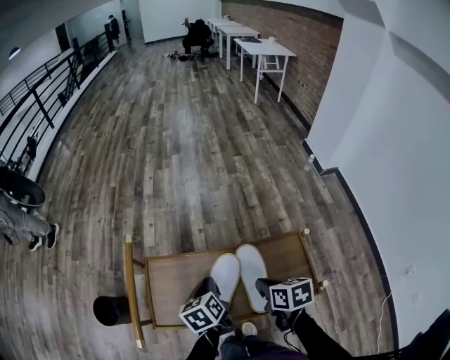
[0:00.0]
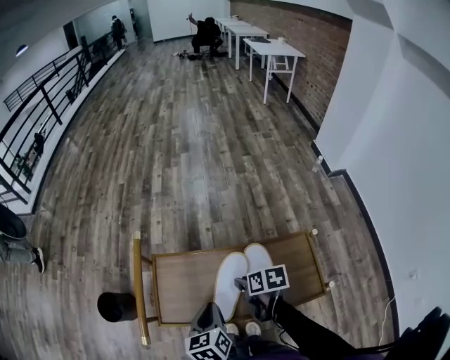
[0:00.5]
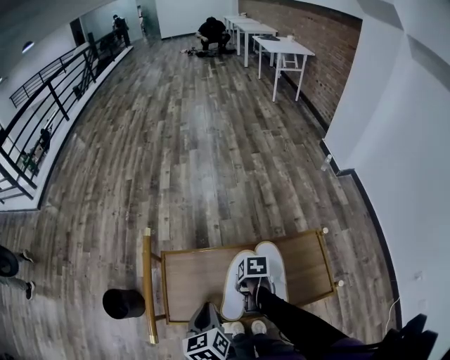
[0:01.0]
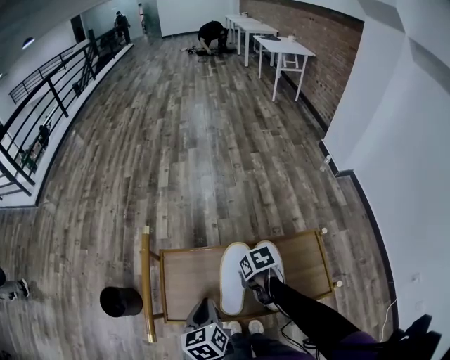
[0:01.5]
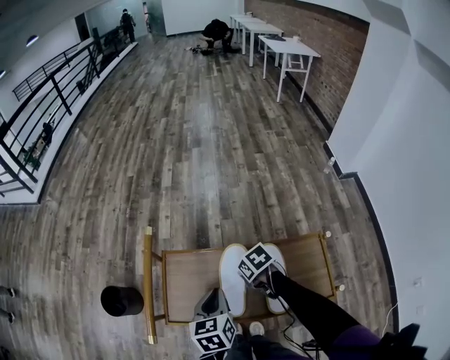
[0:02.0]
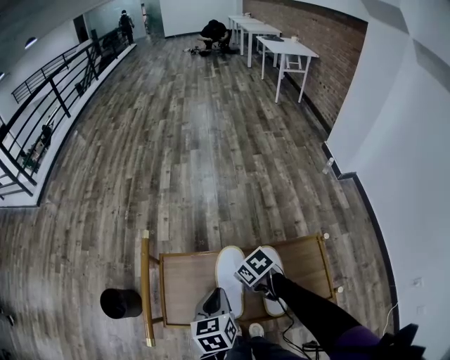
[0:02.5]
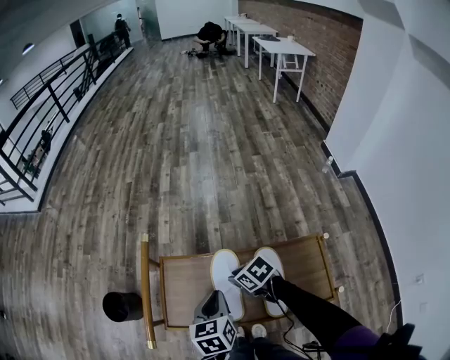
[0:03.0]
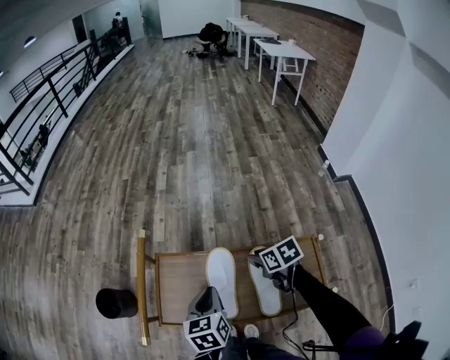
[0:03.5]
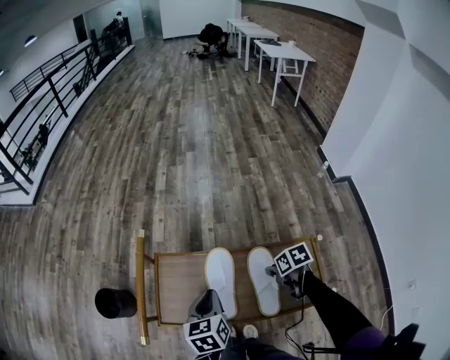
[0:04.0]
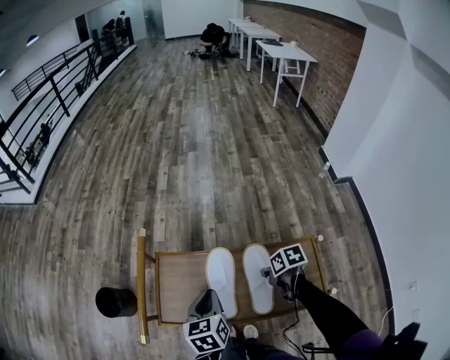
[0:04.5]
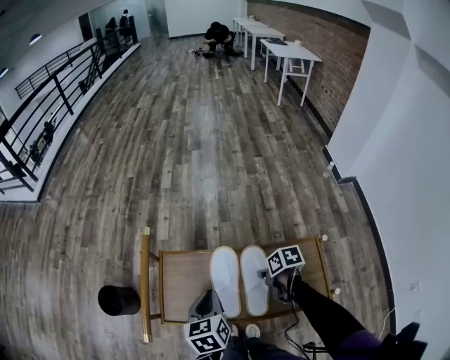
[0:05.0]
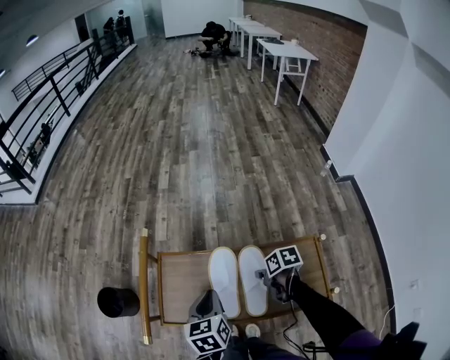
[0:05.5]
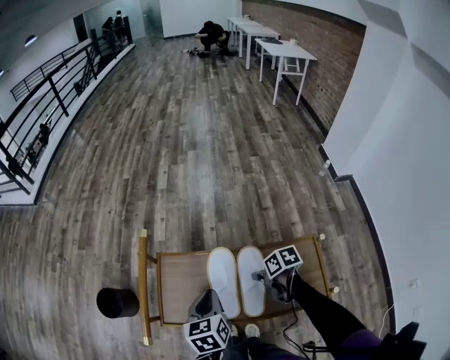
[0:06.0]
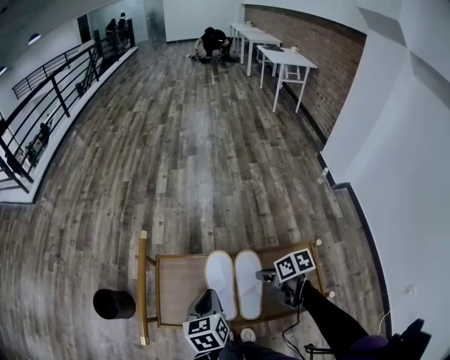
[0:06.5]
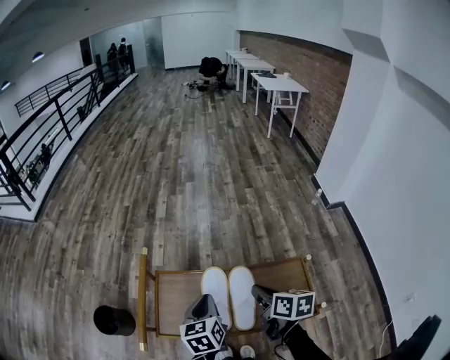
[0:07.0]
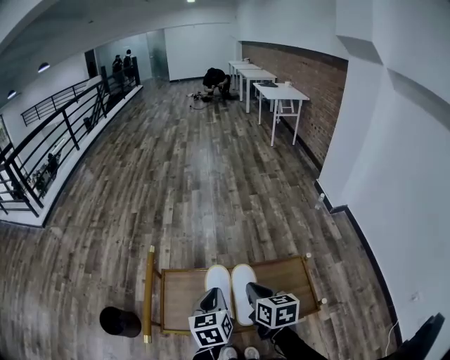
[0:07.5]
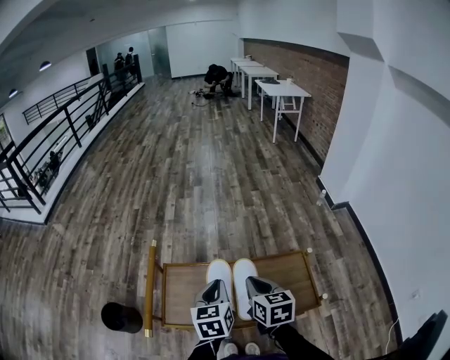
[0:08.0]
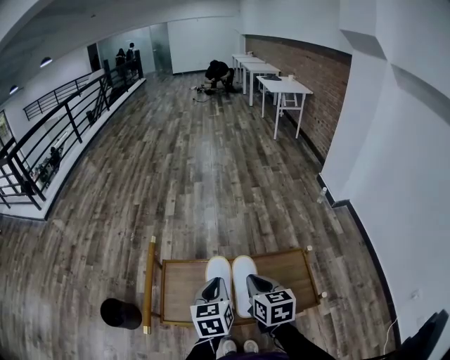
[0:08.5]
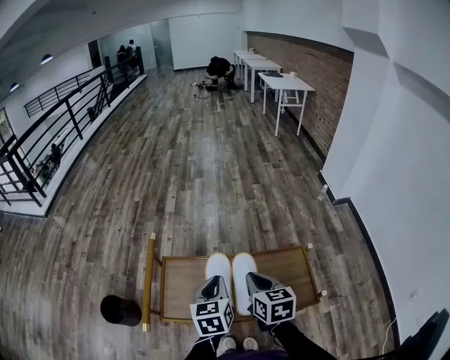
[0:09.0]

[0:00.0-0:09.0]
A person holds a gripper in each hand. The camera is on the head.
0:00.0 to 0:02.0: The right gripper changes place by roughly 15 cm, changes its angle by roughly 40 degrees, and opens, then closes once more.
0:02.0 to 0:04.5: The right gripper travels to the right and backward by about 10 cm, and turns by about 30 degrees.
0:04.5 to 0:07.0: The right gripper travels upward by roughly 15 cm, and rotates approximately 40 degrees.
0:07.0 to 0:09.0: The right gripper swivels roughly 20 degrees.

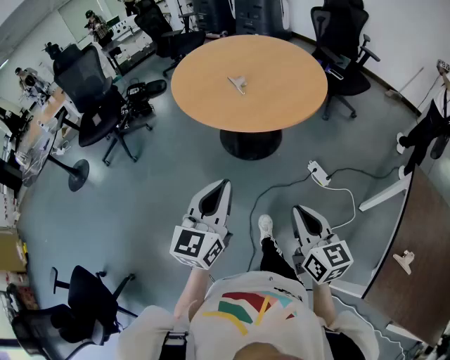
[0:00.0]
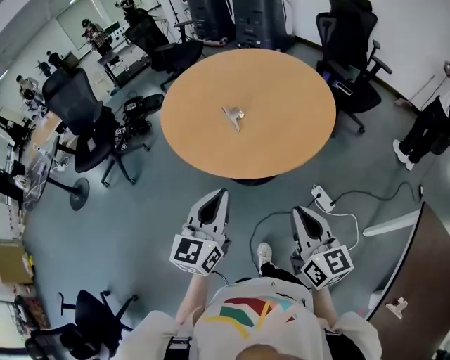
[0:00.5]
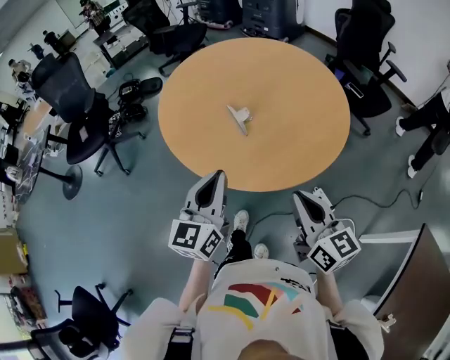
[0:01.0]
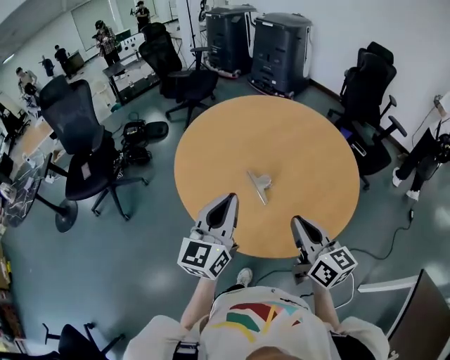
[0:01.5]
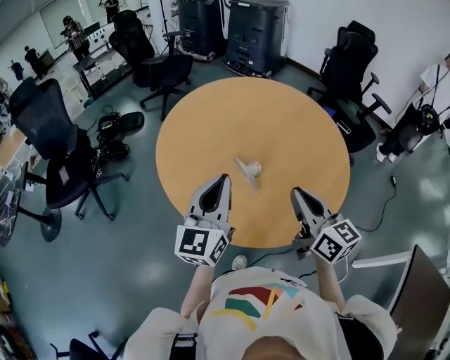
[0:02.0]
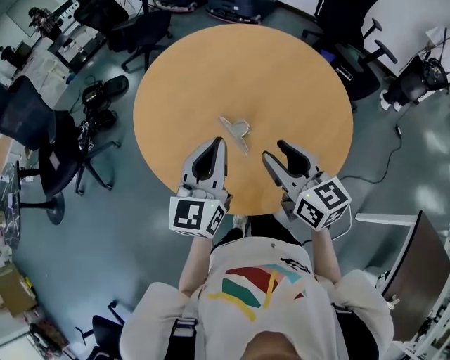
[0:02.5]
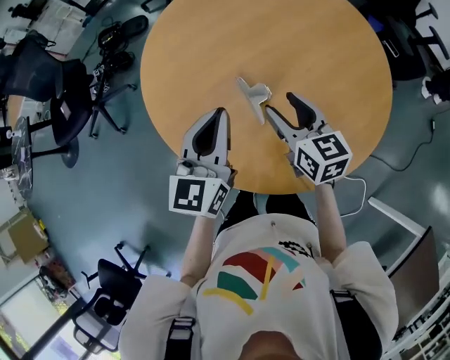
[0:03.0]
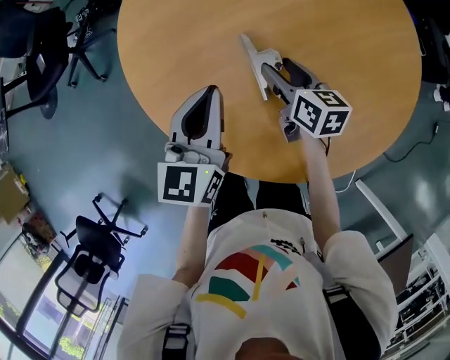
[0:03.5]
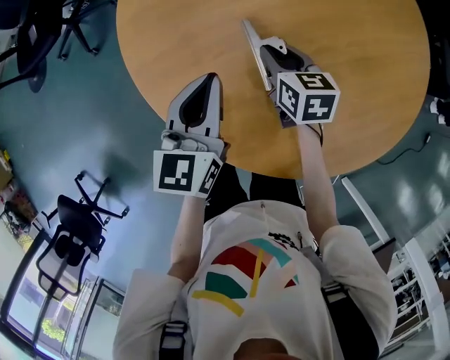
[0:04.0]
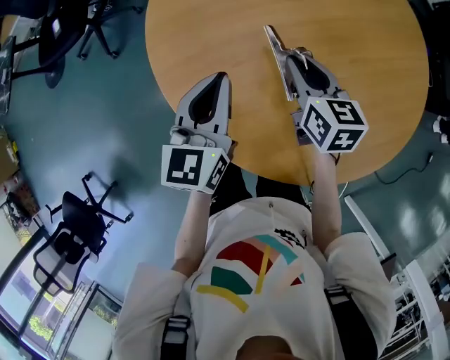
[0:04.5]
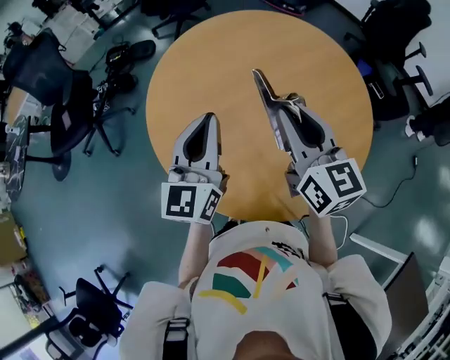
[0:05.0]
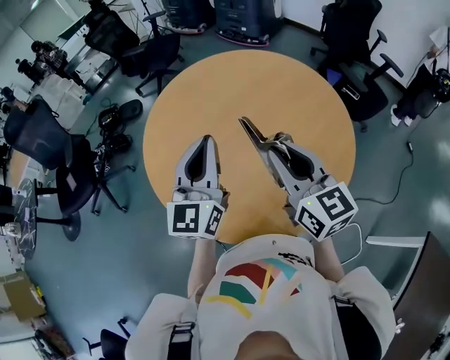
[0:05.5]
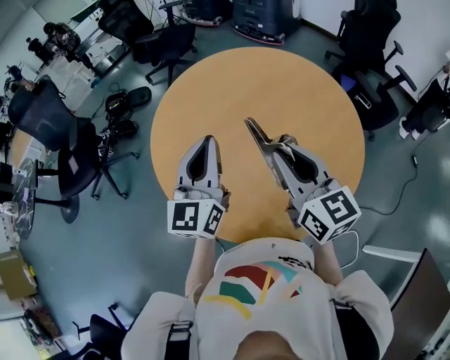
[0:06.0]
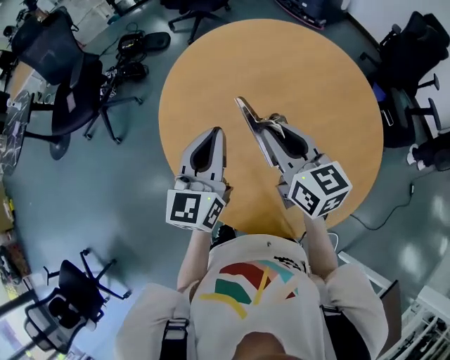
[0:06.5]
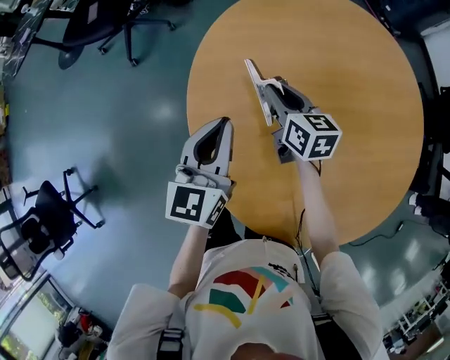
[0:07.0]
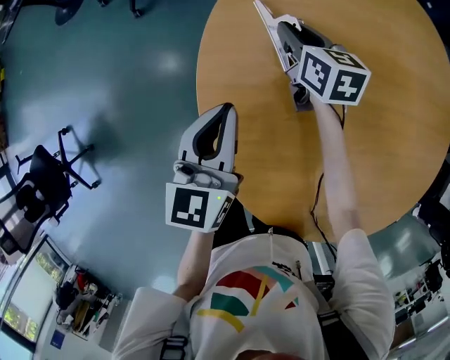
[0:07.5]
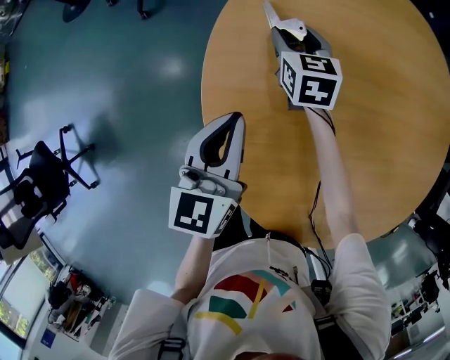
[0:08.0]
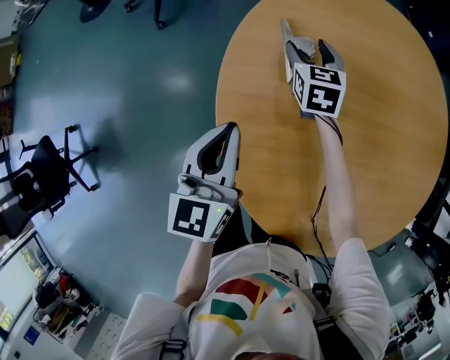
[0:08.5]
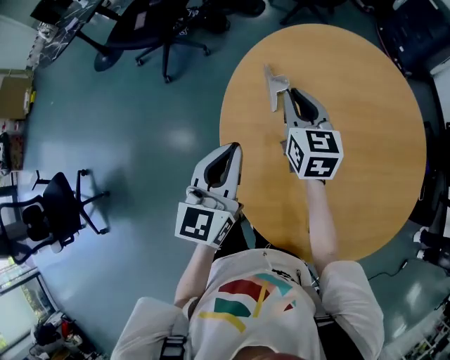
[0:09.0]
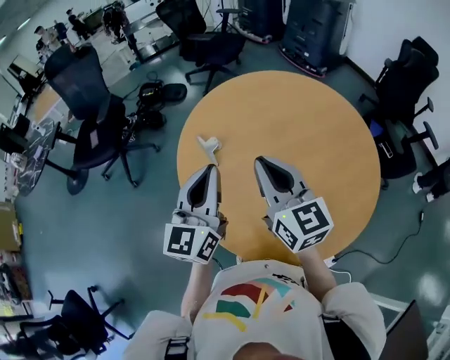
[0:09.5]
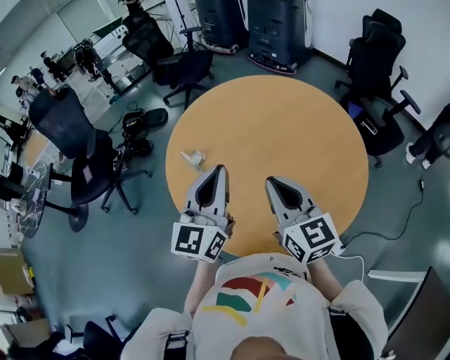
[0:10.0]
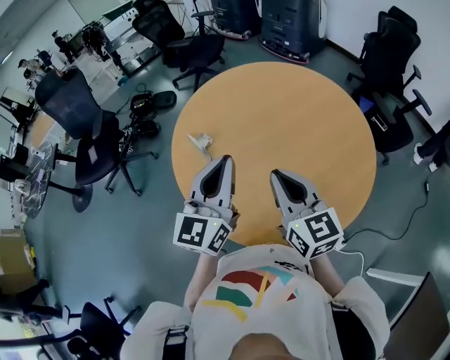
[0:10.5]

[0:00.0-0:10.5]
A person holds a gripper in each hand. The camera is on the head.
0:00.0 to 0:02.0: Both grippers are carried forward, about 60 cm.
0:02.0 to 0:04.0: The left gripper heads downward and forward, covering about 25 cm, and turns by some 30 degrees, while the right gripper is displaced downward and forward by approximately 40 cm, angles its fingers downward, by approximately 40 degrees, and opens up.
0:04.0 to 0:06.5: The left gripper goes some 20 cm upward. Meanwhile the right gripper goes about 30 cm upward, and turns by some 30 degrees.
0:06.5 to 0:08.5: The right gripper travels forward, downward and to the left by about 40 cm, swivels some 30 degrees, and opens up. The left gripper goes approximately 25 cm to the left and downward, and turns by about 30 degrees.
0:08.5 to 0:10.5: The right gripper moves approximately 50 cm, rotates approximately 30 degrees, and closes its fingers, while the left gripper is displaced upward by roughly 25 cm, and turns by about 50 degrees.

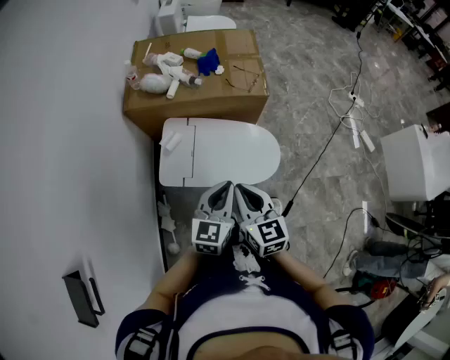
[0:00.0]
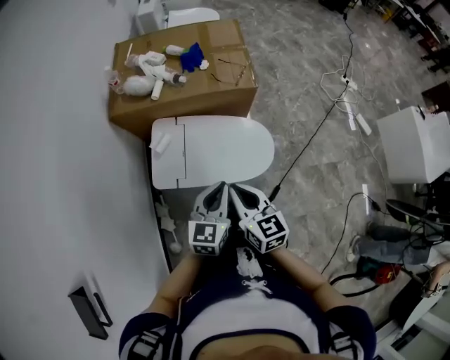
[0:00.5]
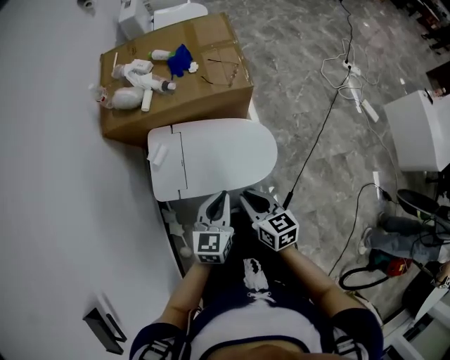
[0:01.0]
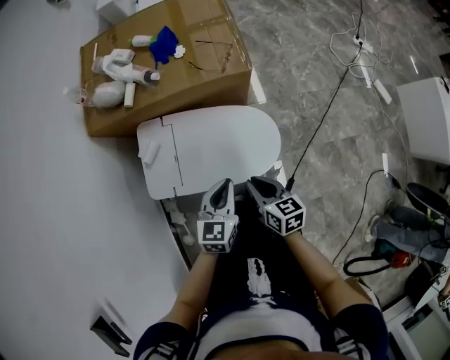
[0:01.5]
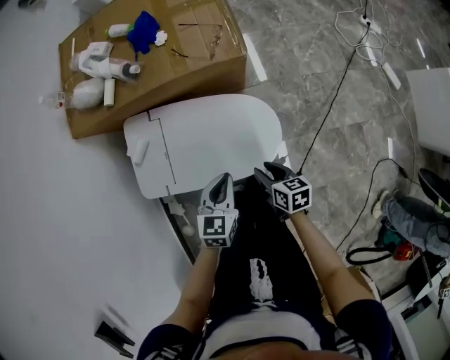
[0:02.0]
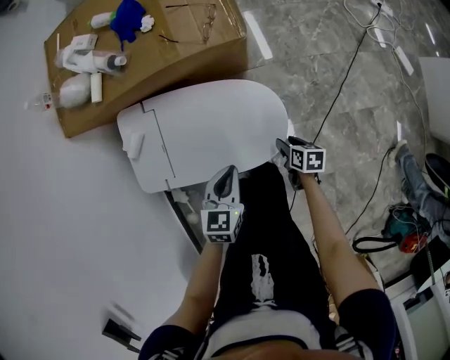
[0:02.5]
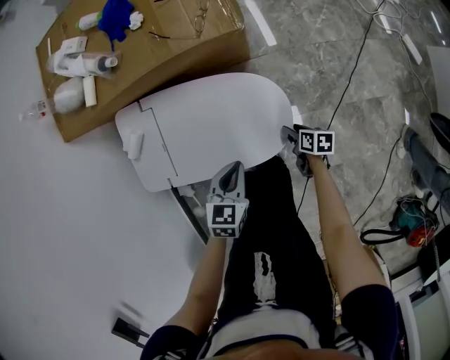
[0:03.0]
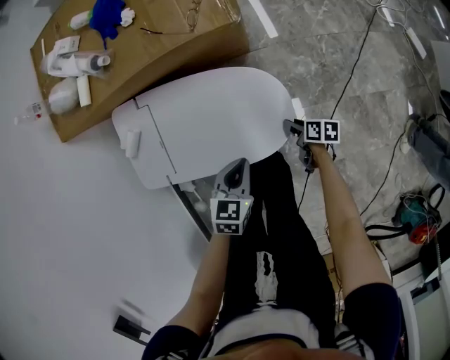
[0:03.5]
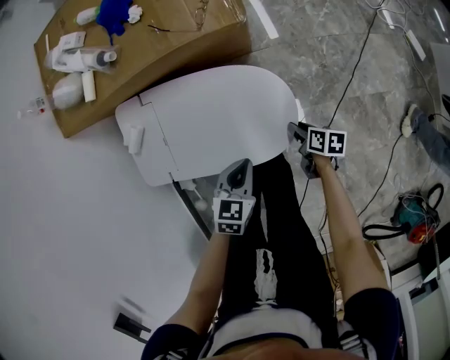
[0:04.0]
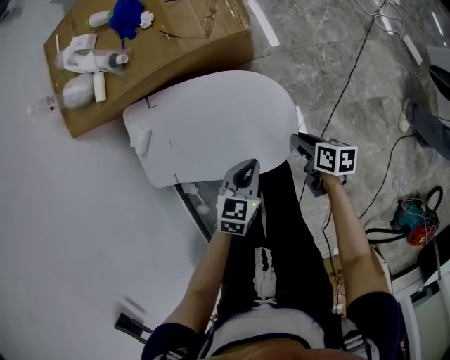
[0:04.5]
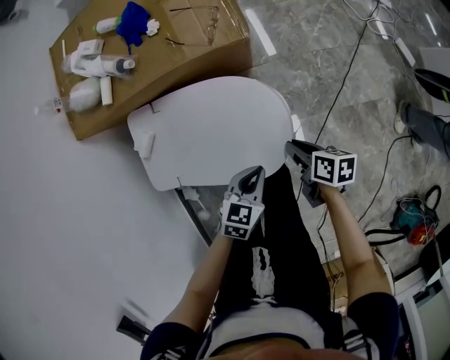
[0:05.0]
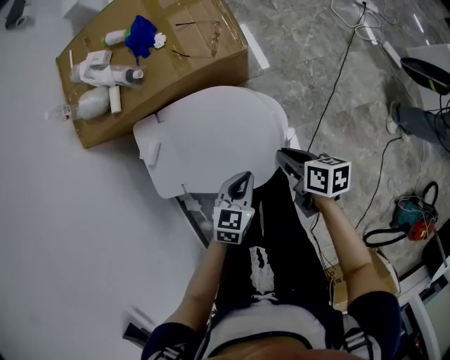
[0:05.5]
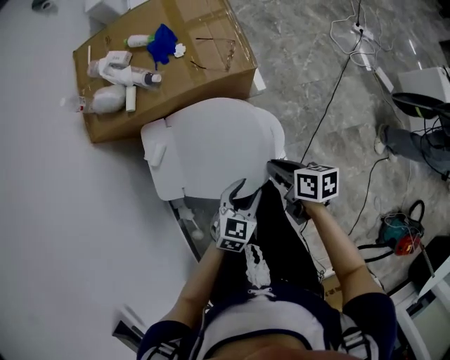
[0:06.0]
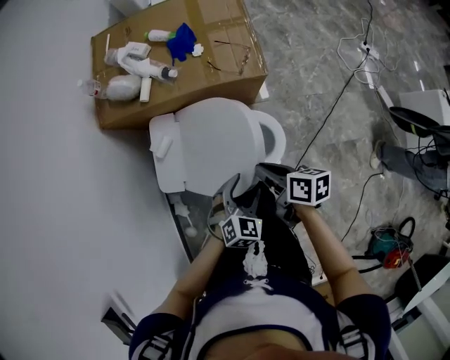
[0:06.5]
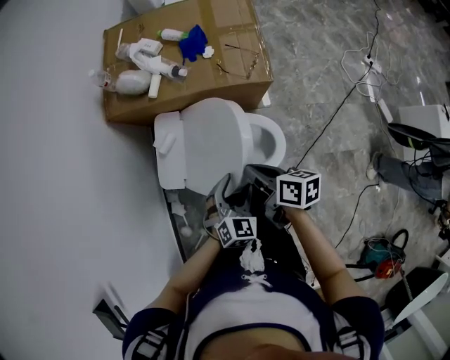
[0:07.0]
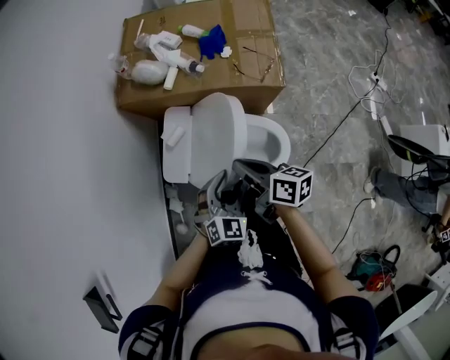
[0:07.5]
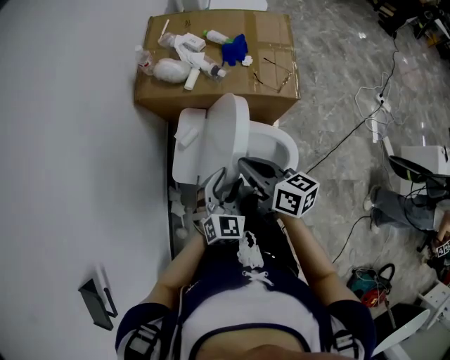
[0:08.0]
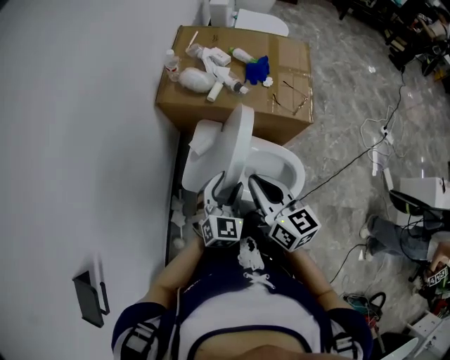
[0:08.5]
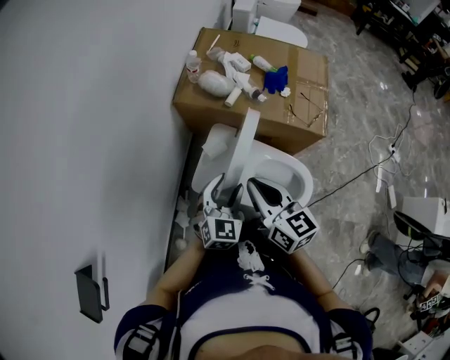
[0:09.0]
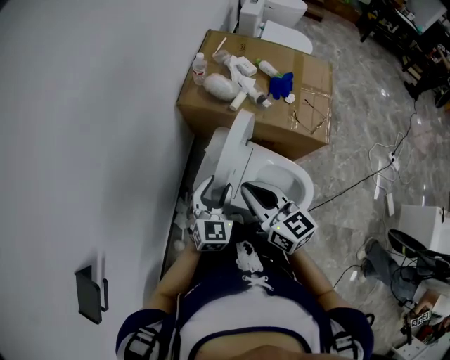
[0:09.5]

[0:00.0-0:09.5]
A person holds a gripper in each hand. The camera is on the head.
0:00.0 to 0:02.0: The left gripper shifts about 30 cm downward, forward and to the right, and changes its angle by some 20 degrees; the right gripper goes roughly 35 cm downward and to the right, turns by about 40 degrees, and opens up.
0:02.0 to 0:04.0: The left gripper moves downward, roughly 10 cm; the right gripper is displaced downward and to the right by some 20 cm, and swivels approximately 30 degrees.
0:04.0 to 0:05.5: The left gripper goes roughly 10 cm upward. Meanwhile the right gripper goes roughly 25 cm upward.
0:05.5 to 0:07.5: The right gripper travels to the left and upward by roughly 25 cm, and rotates roughly 30 degrees. Meanwhile the left gripper heads upward and to the left, covering about 15 cm, turns by some 40 degrees, and opens.
0:07.5 to 0:09.5: The right gripper is displaced to the left and upward by about 20 cm, and turns by some 40 degrees; the left gripper moves to the left and forward, some 20 cm, and rotates about 30 degrees.
